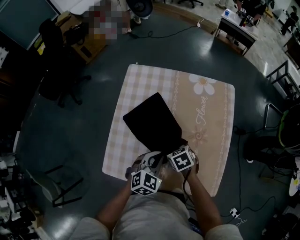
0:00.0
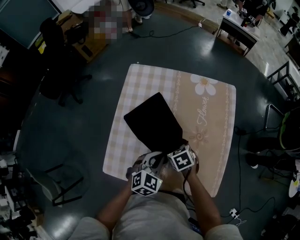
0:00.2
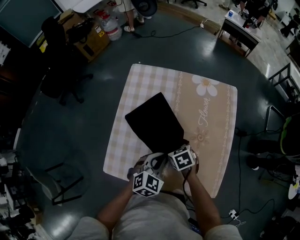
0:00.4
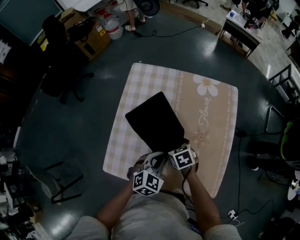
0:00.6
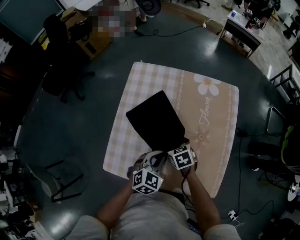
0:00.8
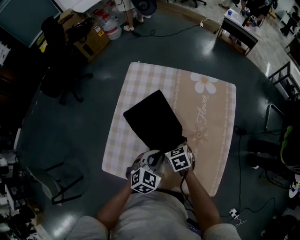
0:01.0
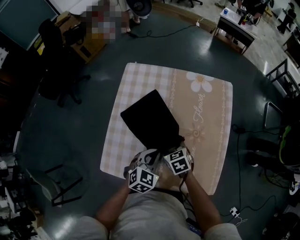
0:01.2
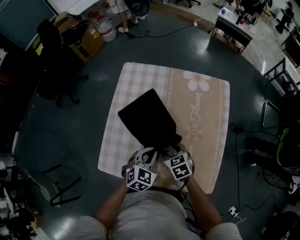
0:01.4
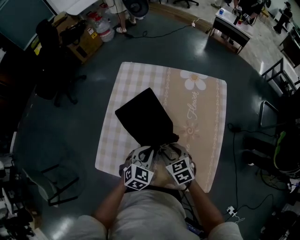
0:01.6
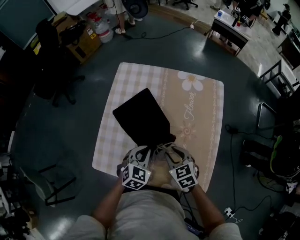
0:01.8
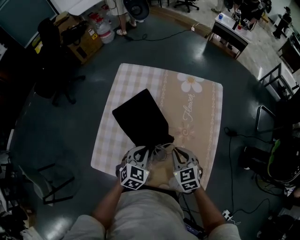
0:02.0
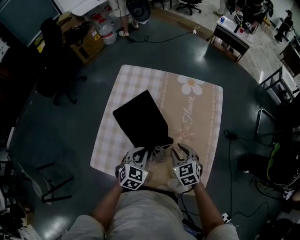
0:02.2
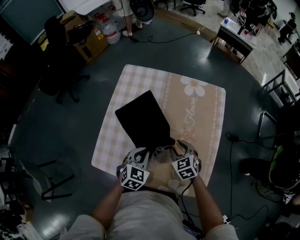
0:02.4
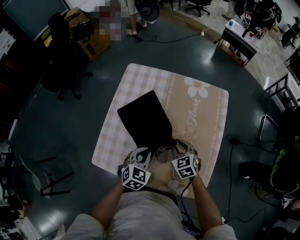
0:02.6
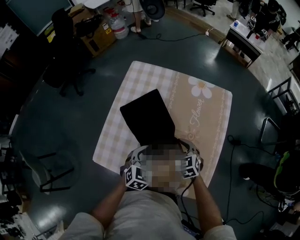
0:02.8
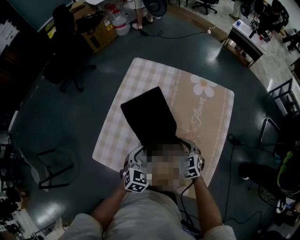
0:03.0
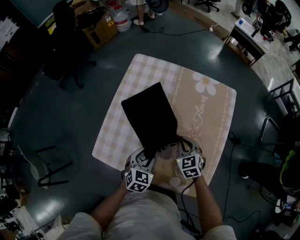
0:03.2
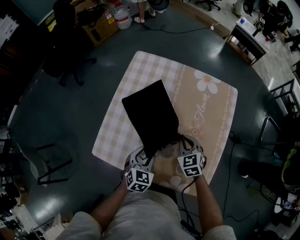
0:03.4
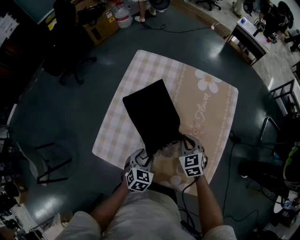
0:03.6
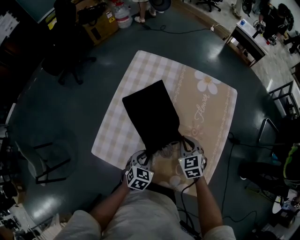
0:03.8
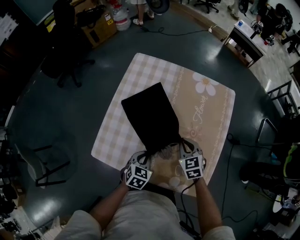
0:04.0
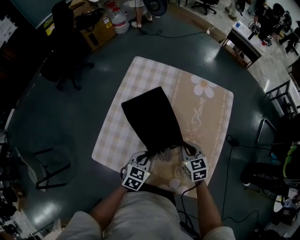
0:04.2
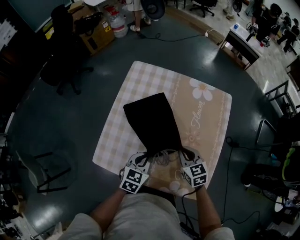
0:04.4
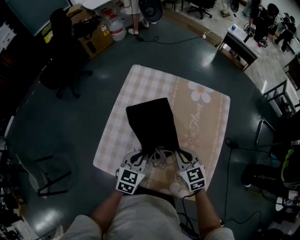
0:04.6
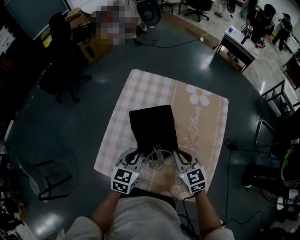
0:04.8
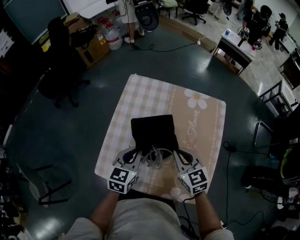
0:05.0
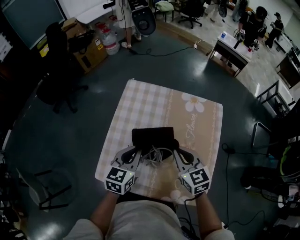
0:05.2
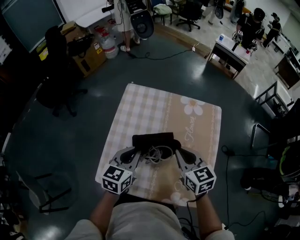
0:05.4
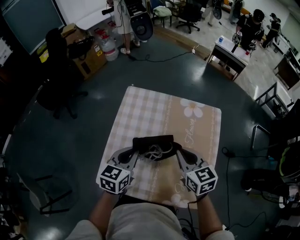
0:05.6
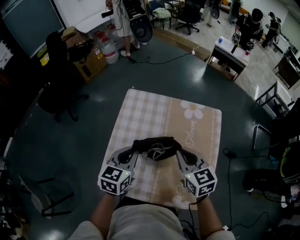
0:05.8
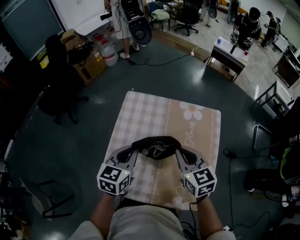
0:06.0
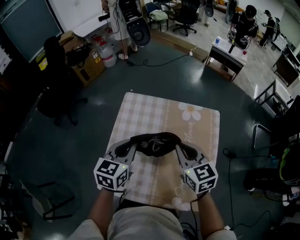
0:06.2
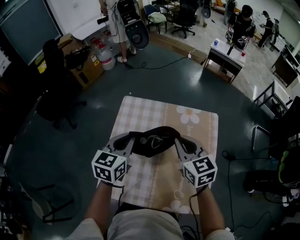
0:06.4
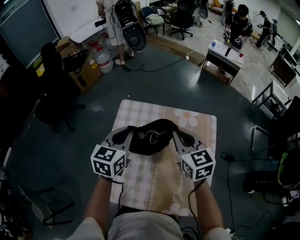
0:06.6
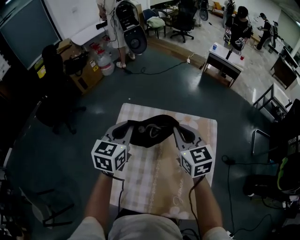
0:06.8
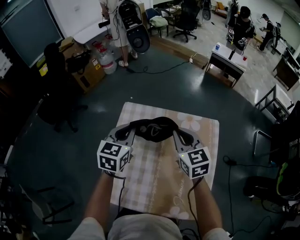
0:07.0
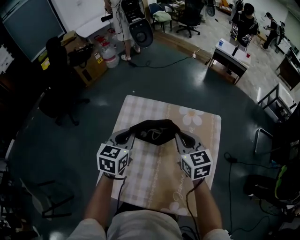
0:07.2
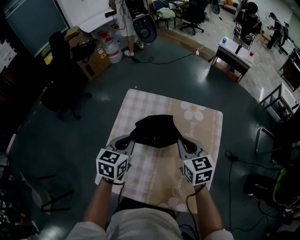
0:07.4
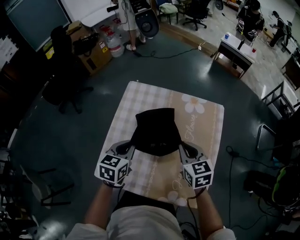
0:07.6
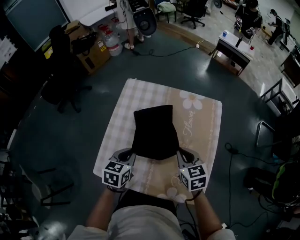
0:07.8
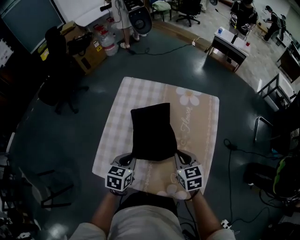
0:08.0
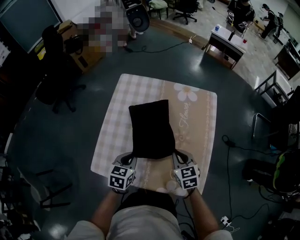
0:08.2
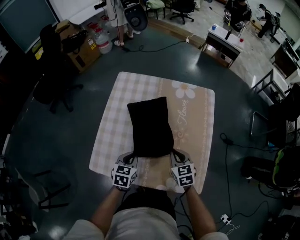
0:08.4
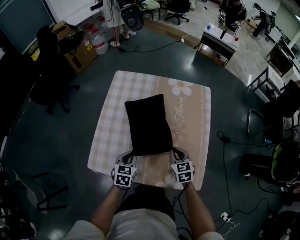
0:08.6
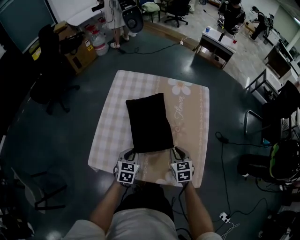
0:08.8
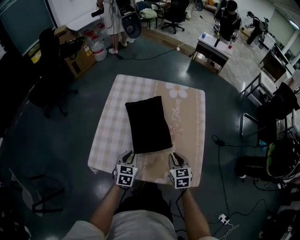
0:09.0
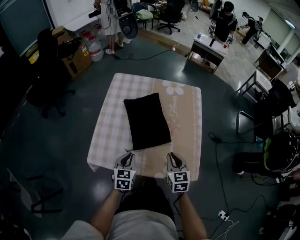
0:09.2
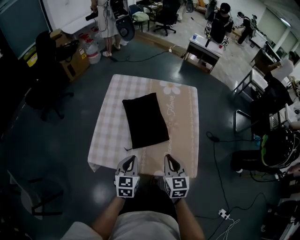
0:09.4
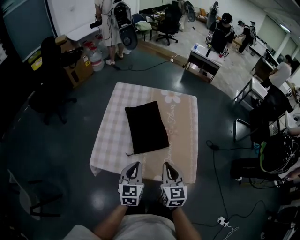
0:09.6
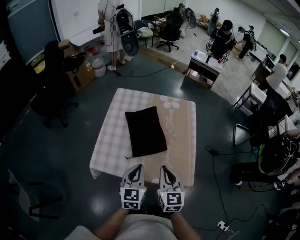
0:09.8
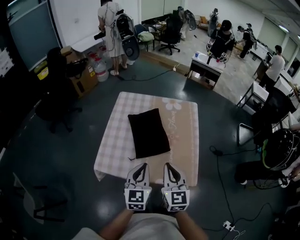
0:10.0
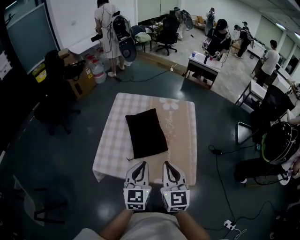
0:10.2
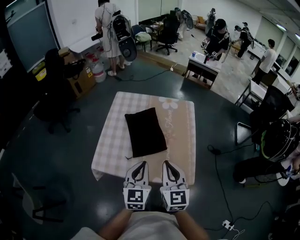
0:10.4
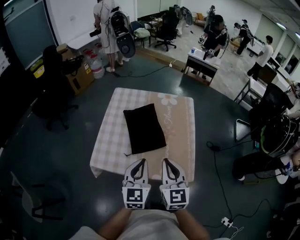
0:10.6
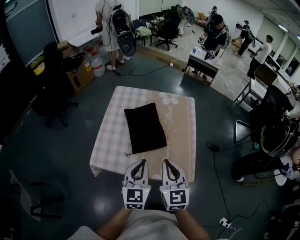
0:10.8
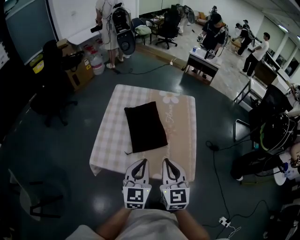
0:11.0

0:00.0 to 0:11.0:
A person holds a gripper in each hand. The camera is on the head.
0:00.0 to 0:01.6: The right gripper ends up approximately 5 cm from where it was.
0:01.6 to 0:03.2: The left gripper shifts by about 5 cm, and opens its fingers. Meanwhile the right gripper shifts roughly 5 cm to the right, and closes its fingers.
0:03.2 to 0:04.8: The right gripper moves upward, some 10 cm. The left gripper travels upward and forward by approximately 10 cm, and closes.
0:04.8 to 0:06.2: The grippers both shift upward and forward by approximately 15 cm.
0:06.2 to 0:07.8: The two grippers go roughly 15 cm downward and backward.
0:07.8 to 0:09.4: The two grippers go roughly 20 cm backward. The right gripper rotates approximately 20 degrees.
0:09.4 to 0:11.0: The right gripper moves upward, about 10 cm. Meanwhile the left gripper heads upward and to the right, covering roughly 15 cm.

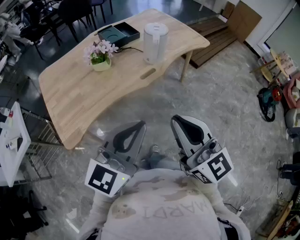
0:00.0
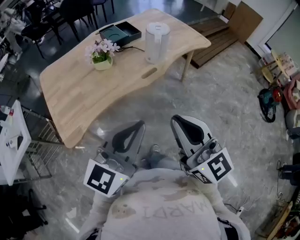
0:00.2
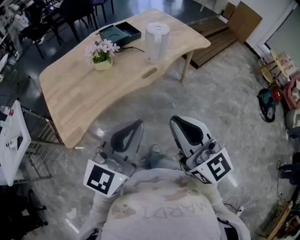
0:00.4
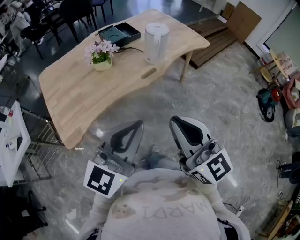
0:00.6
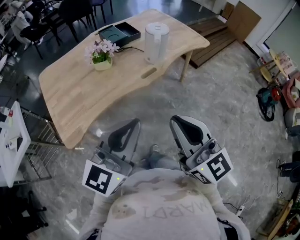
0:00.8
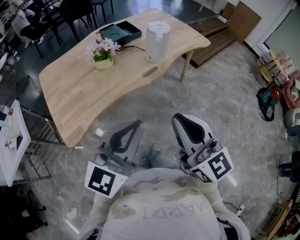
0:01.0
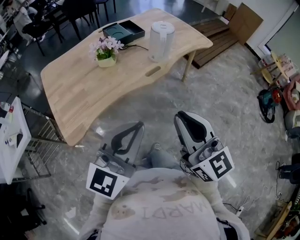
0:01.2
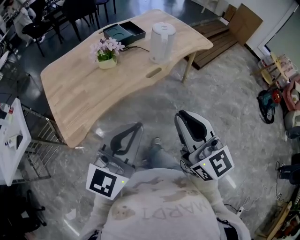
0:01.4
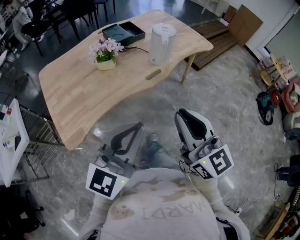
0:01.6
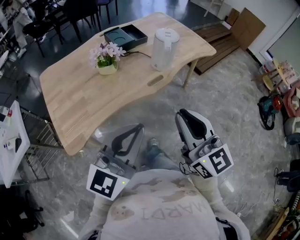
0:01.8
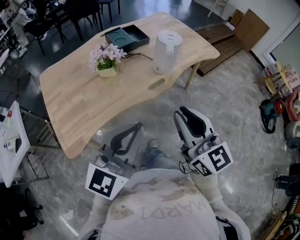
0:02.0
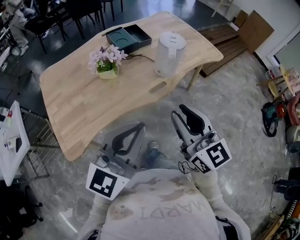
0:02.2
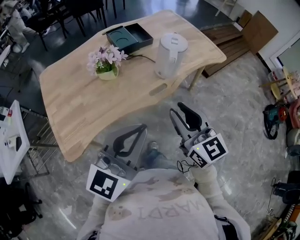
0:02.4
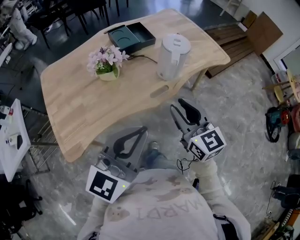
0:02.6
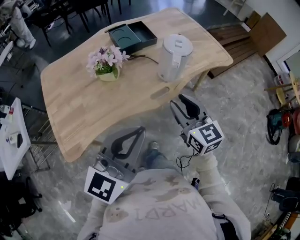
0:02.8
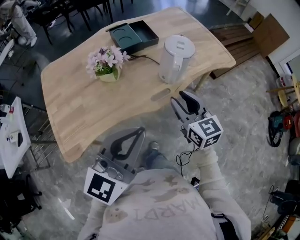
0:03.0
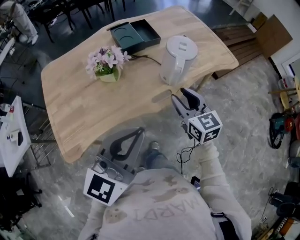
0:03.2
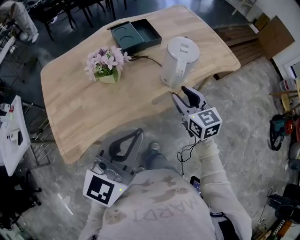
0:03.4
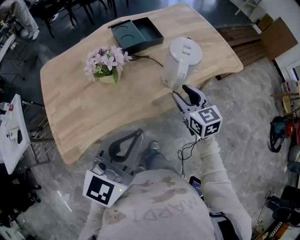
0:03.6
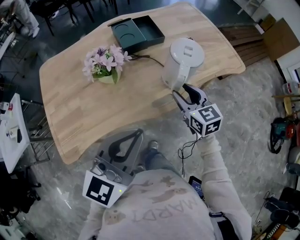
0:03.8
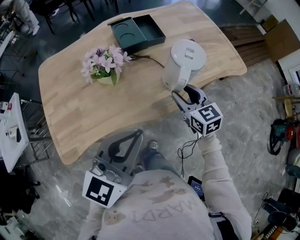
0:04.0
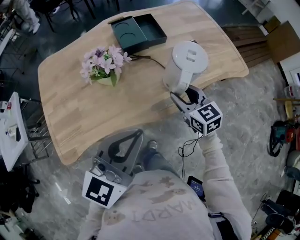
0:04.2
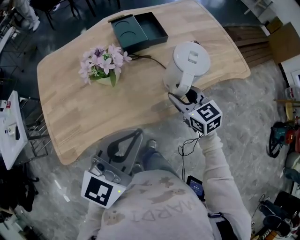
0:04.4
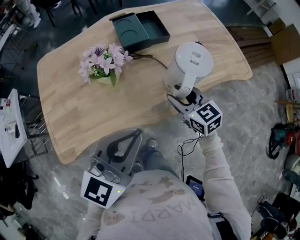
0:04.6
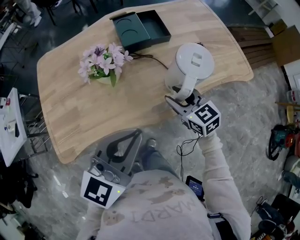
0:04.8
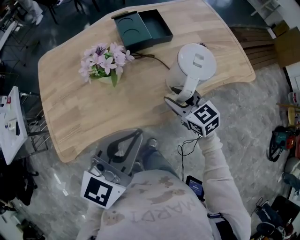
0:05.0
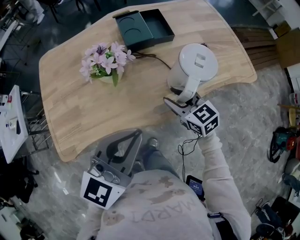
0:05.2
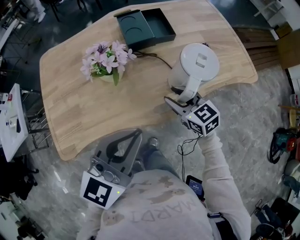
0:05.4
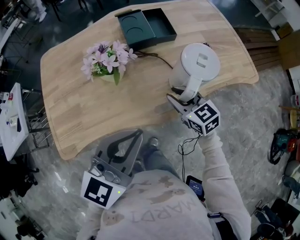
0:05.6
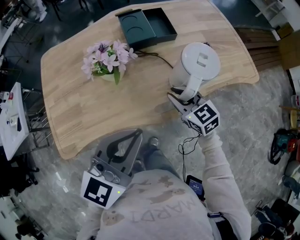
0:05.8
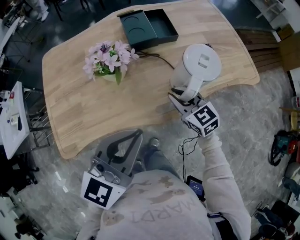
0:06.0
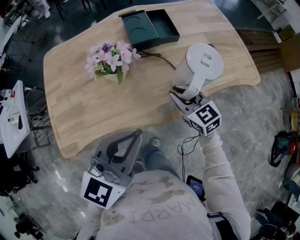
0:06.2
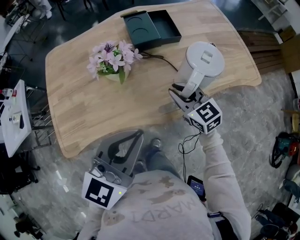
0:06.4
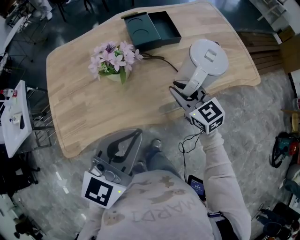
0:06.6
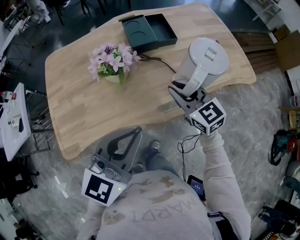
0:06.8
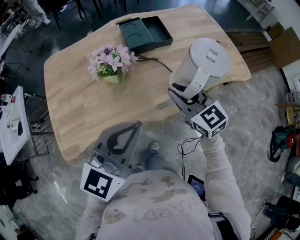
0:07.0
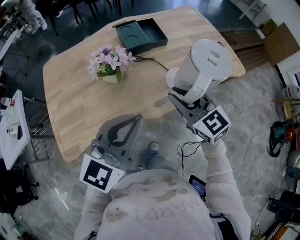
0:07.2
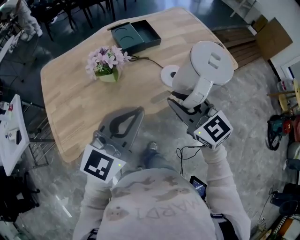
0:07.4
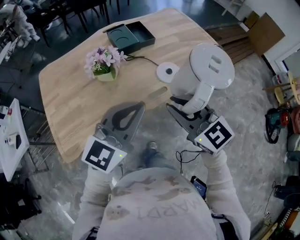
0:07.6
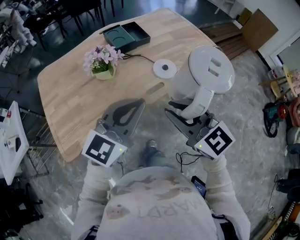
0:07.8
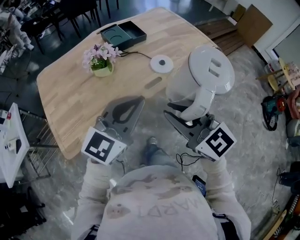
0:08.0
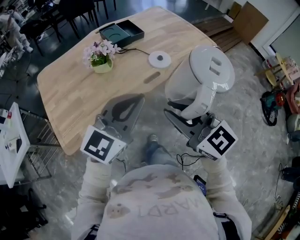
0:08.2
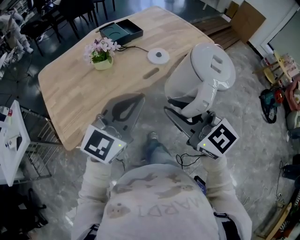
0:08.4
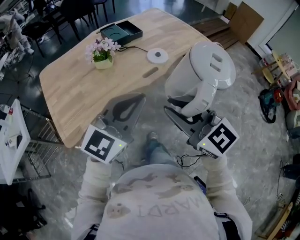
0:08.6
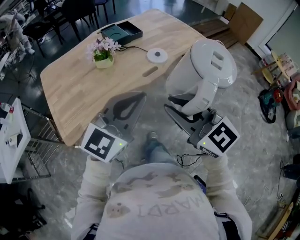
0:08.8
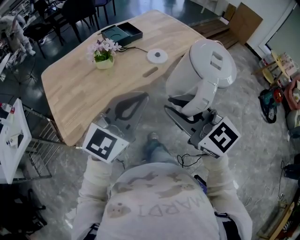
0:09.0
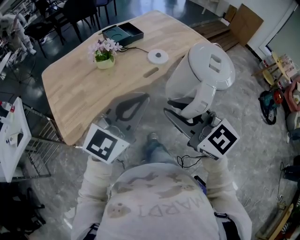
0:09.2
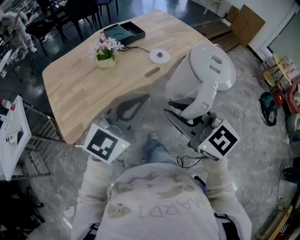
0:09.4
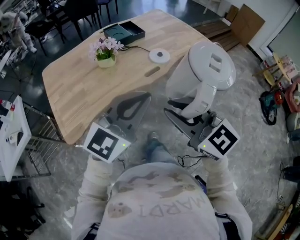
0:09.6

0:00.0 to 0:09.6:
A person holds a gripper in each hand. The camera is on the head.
0:00.0 to 0:01.6: The grippers move only a little.
0:01.6 to 0:03.2: The right gripper heads forward and downward, covering approximately 35 cm, turns by roughly 20 degrees, and opens up. Meanwhile the left gripper travels forward by some 20 cm.
0:03.2 to 0:04.8: The left gripper heads forward, covering some 10 cm. The right gripper shifts some 15 cm forward and downward, and swivels some 20 degrees.
0:04.8 to 0:06.4: The right gripper closes.
0:06.4 to 0:08.0: The right gripper is displaced backward and upward by about 35 cm; the left gripper goes approximately 15 cm backward, and swivels roughly 20 degrees.
0:08.0 to 0:09.6: Both grippers travel together backward, about 15 cm.

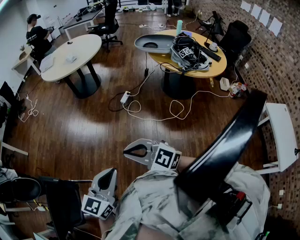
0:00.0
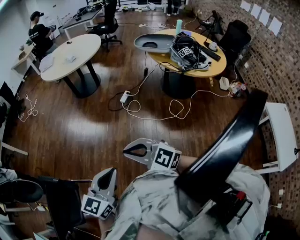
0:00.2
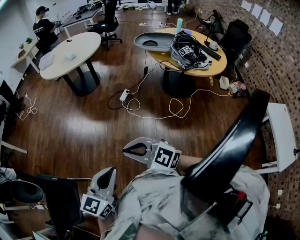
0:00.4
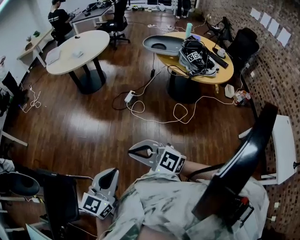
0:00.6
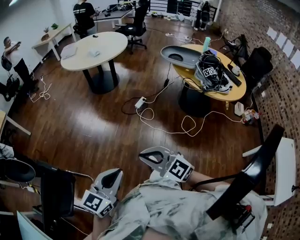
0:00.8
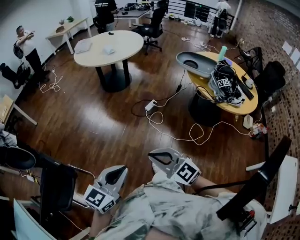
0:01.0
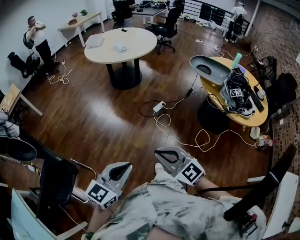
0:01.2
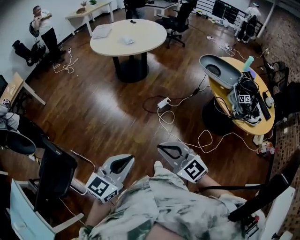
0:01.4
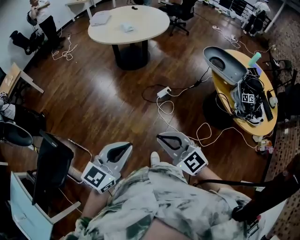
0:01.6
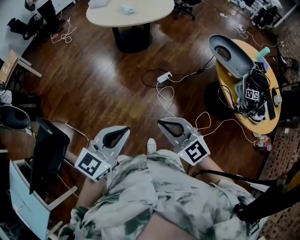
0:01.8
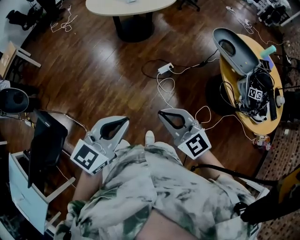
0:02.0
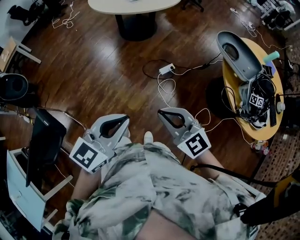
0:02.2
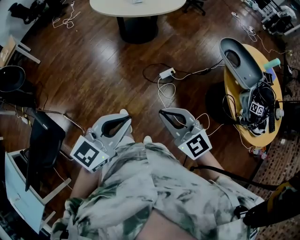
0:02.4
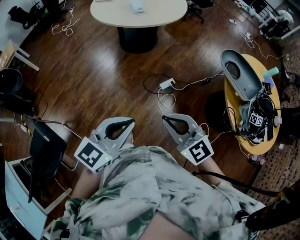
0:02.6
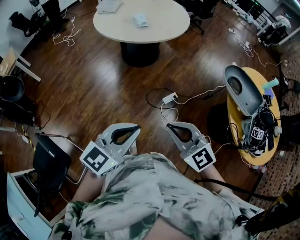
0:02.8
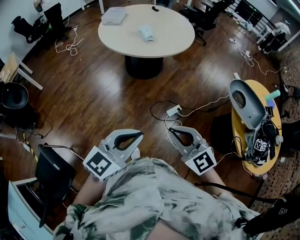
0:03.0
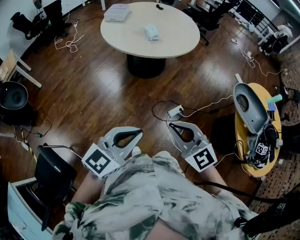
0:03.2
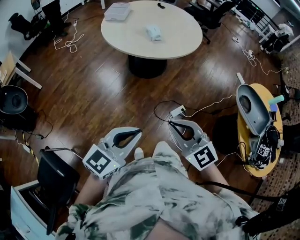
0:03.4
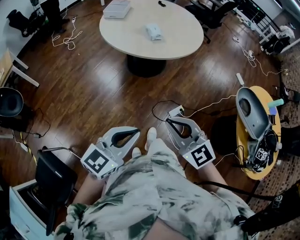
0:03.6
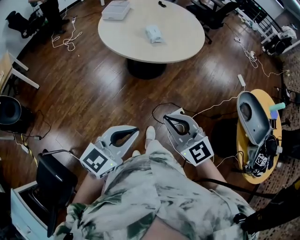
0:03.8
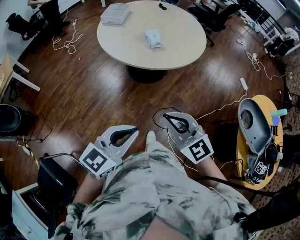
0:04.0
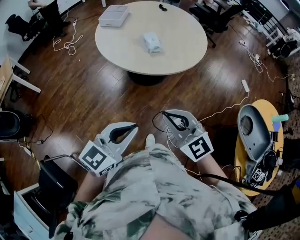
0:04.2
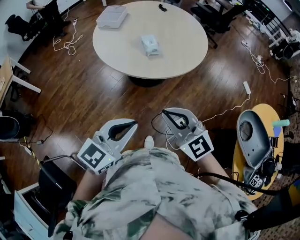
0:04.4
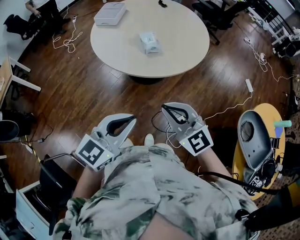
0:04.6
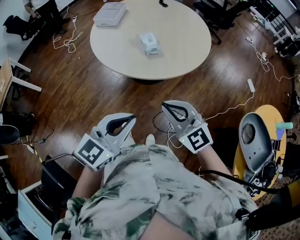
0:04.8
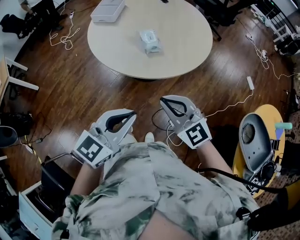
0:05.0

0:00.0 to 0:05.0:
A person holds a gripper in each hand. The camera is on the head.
0:00.0 to 0:01.6: The right gripper travels forward and to the right by approximately 25 cm. The left gripper goes about 20 cm forward.
0:01.6 to 0:03.4: Both grippers travel together forward, approximately 35 cm.
0:03.4 to 0:05.0: Both grippers travel together forward, some 30 cm.
